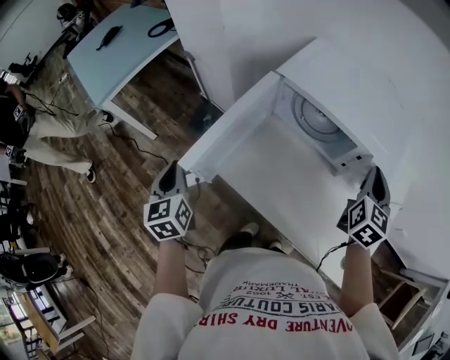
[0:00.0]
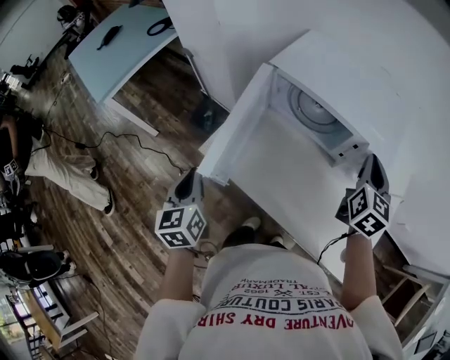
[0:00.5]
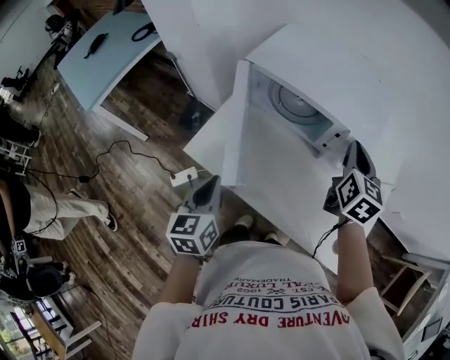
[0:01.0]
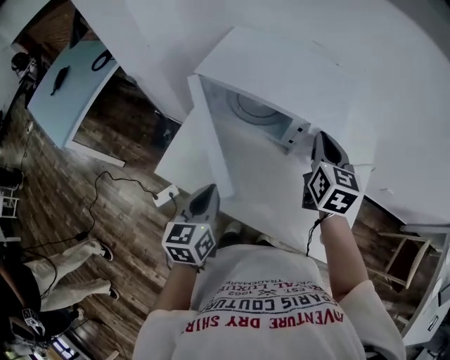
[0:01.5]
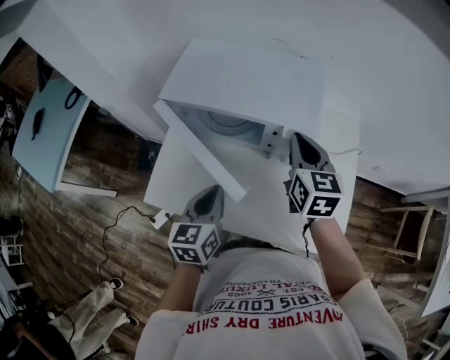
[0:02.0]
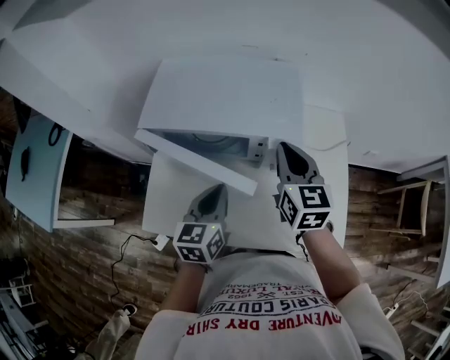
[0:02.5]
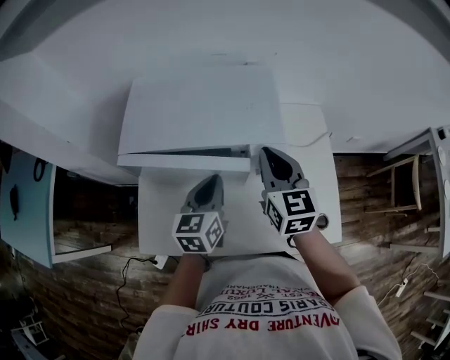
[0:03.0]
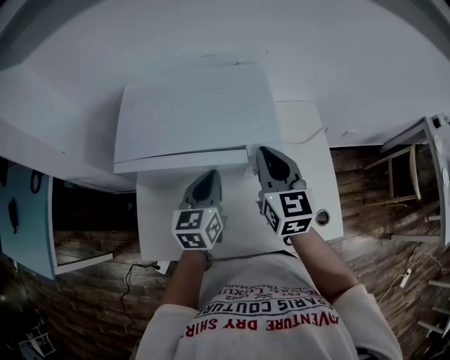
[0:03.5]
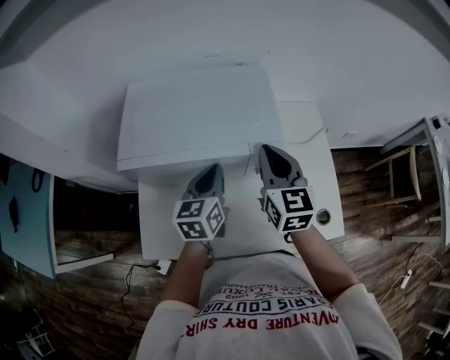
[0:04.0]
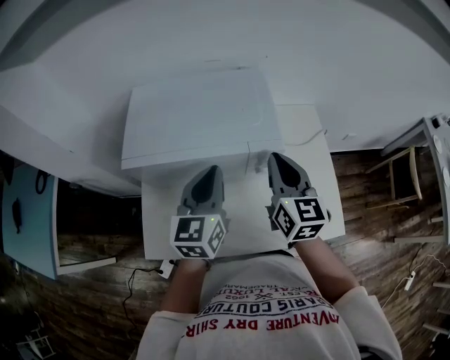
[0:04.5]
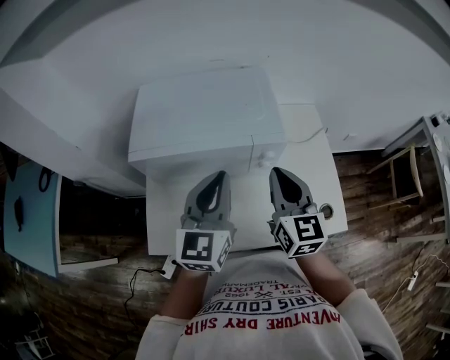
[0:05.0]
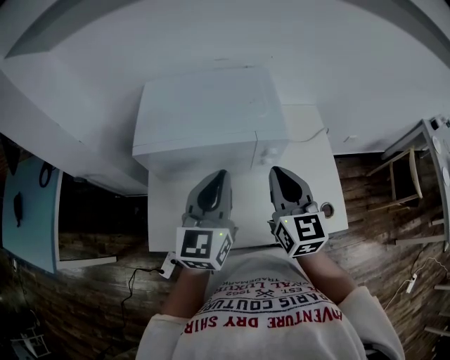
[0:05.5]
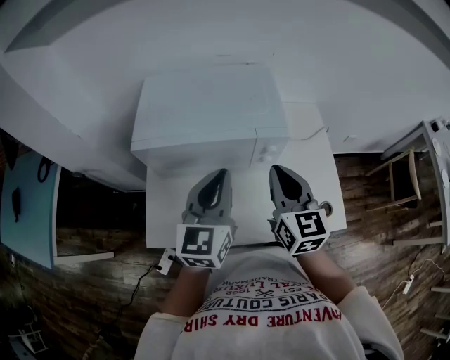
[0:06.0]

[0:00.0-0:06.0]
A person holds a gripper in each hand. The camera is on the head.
0:00.0 to 0:02.0: The left gripper goes about 30 cm to the right, and changes its angle by approximately 40 degrees.
0:02.0 to 0:04.0: The left gripper is displaced forward by approximately 15 cm.
0:04.0 to 0:06.0: The left gripper heads upward and backward, covering roughly 15 cm, and swivels some 20 degrees. The right gripper travels backward by roughly 10 cm.

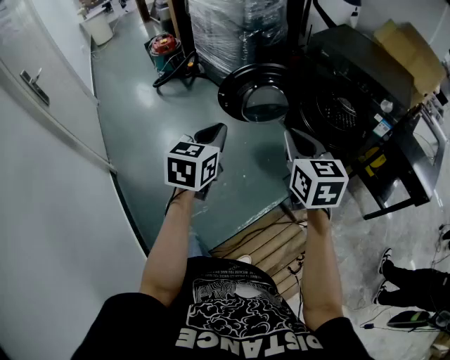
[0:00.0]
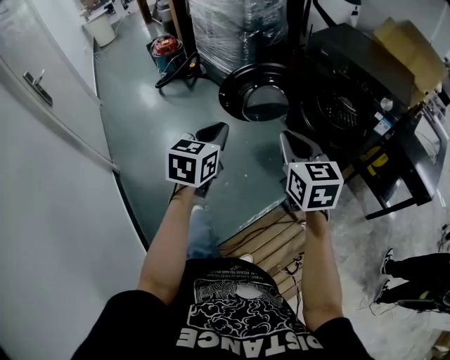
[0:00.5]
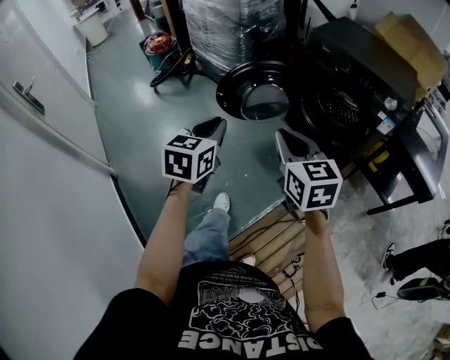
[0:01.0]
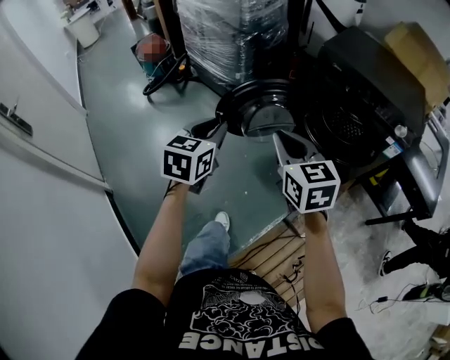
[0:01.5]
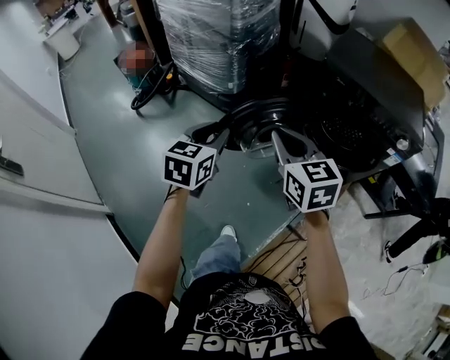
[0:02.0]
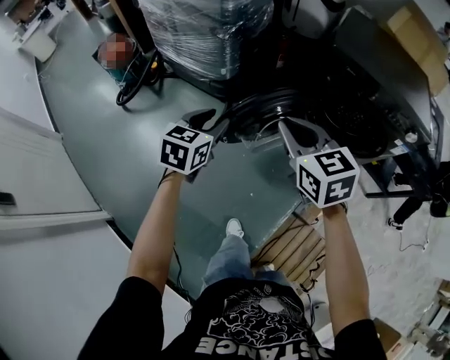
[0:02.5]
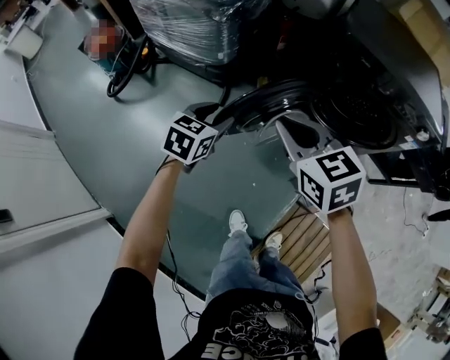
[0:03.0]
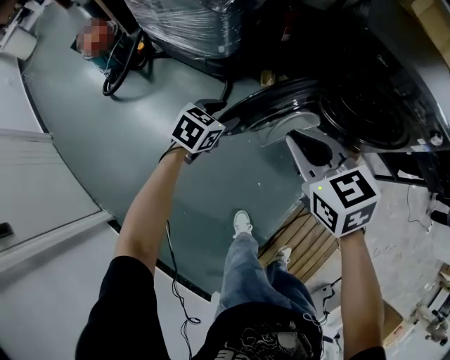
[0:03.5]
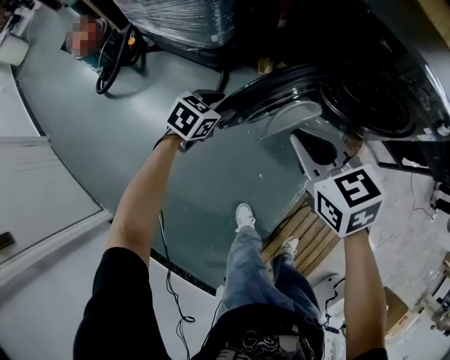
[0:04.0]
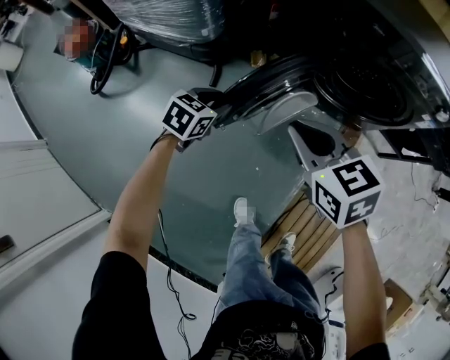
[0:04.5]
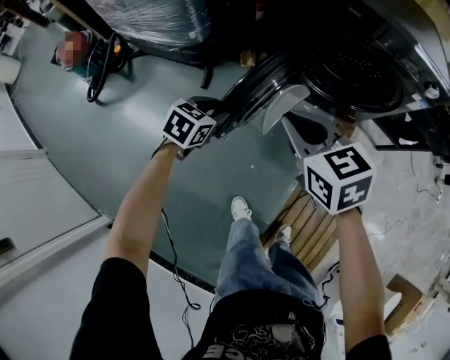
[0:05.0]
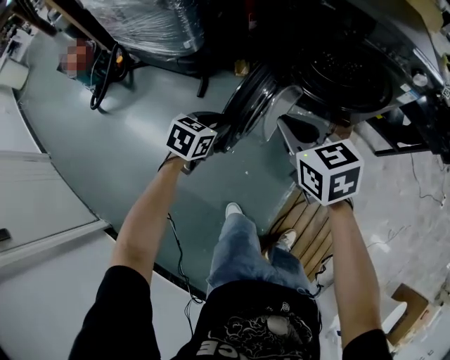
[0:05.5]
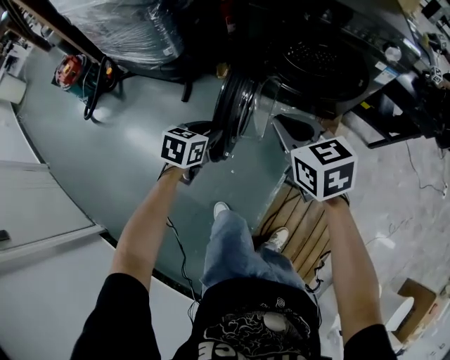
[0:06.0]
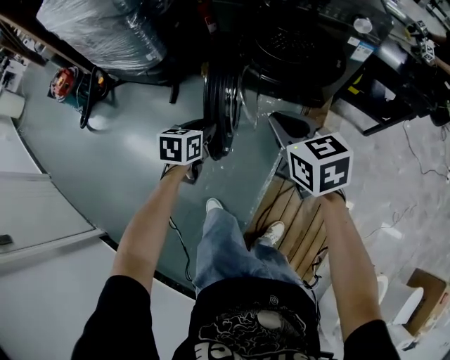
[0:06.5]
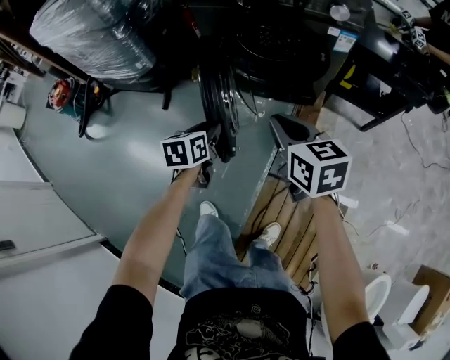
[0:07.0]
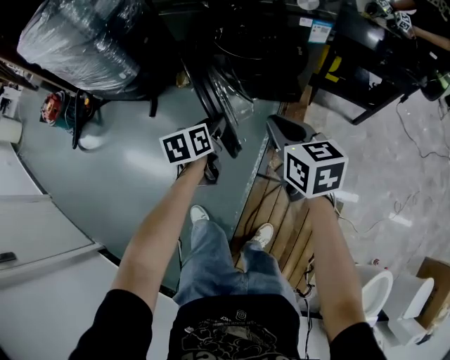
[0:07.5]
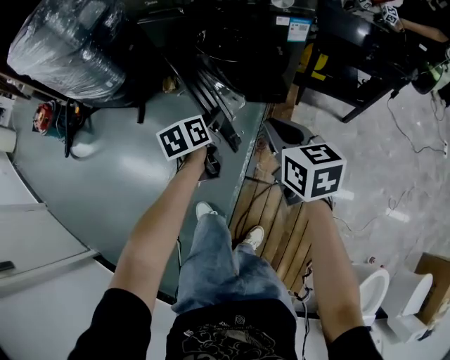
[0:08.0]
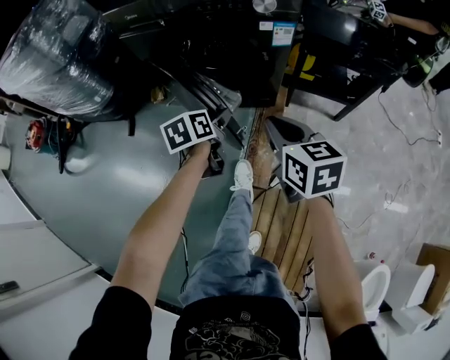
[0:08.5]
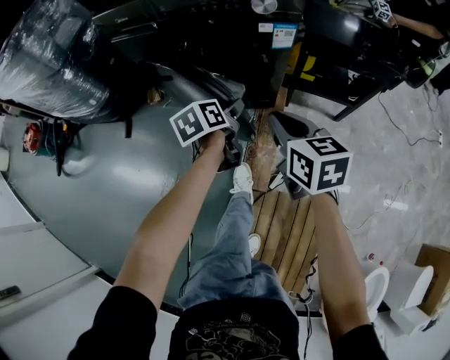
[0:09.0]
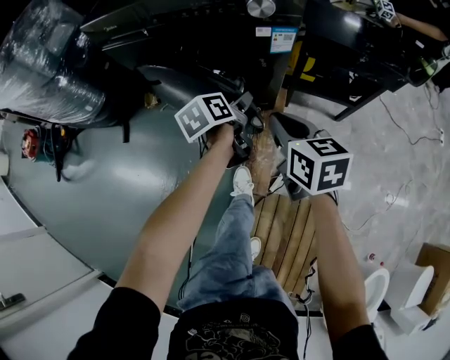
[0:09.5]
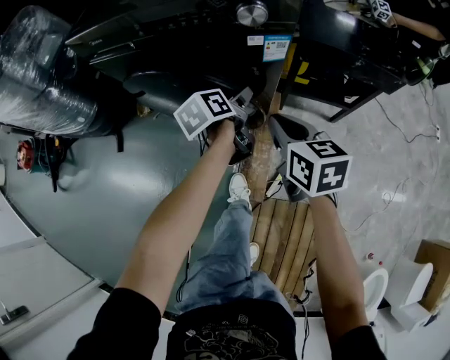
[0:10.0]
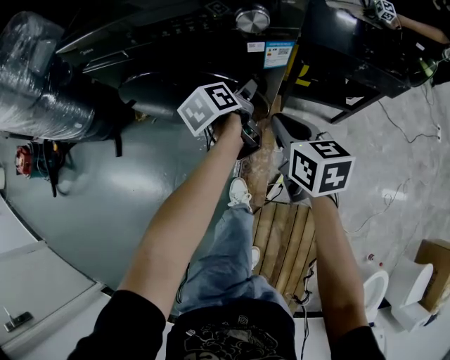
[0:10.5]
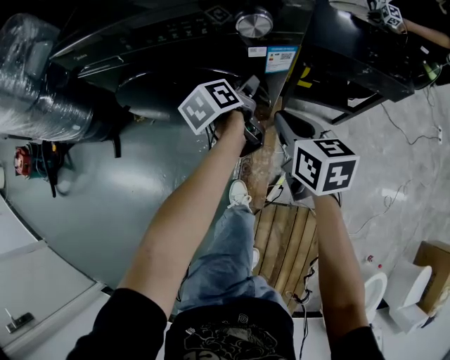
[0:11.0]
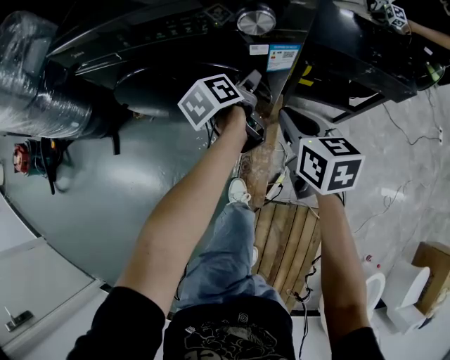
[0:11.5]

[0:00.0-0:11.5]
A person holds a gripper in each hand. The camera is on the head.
0:00.0 to 0:02.0: Both grippers move forward, roughly 30 cm.
0:02.0 to 0:04.0: The left gripper travels downward and forward by approximately 30 cm, and changes its angle by about 40 degrees; the right gripper heads downward and forward, covering some 15 cm.
0:04.0 to 0:06.0: The left gripper moves to the right and backward, some 25 cm. The right gripper goes roughly 20 cm to the right.
0:06.0 to 0:07.5: The grippers both shift to the right by about 25 cm. The left gripper turns by about 20 degrees.
0:07.5 to 0:09.5: The two grippers go roughly 20 cm to the right and forward. The left gripper turns by roughly 20 degrees, and opens its fingers.
0:09.5 to 0:11.5: Both grippers travel together forward, some 10 cm.

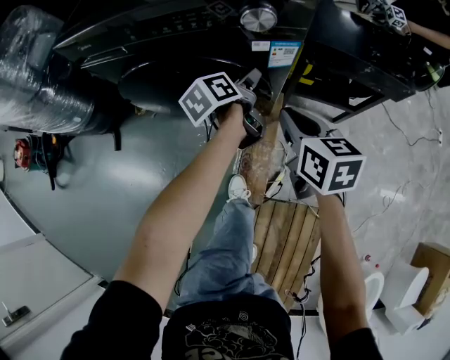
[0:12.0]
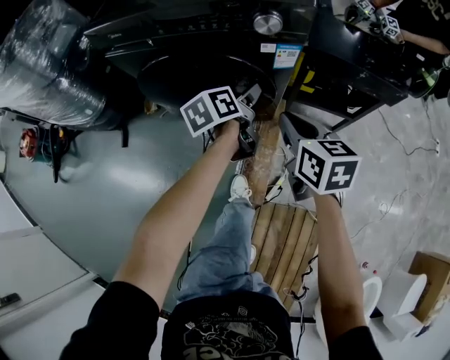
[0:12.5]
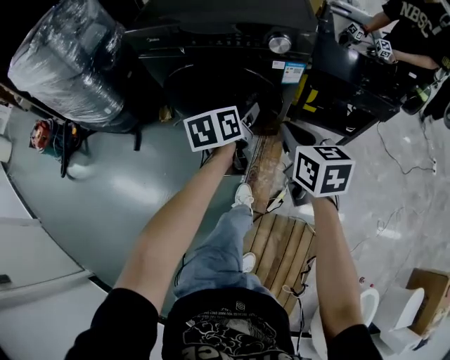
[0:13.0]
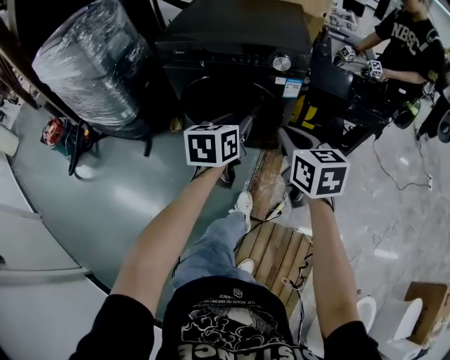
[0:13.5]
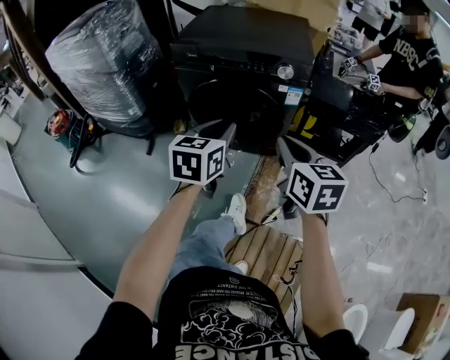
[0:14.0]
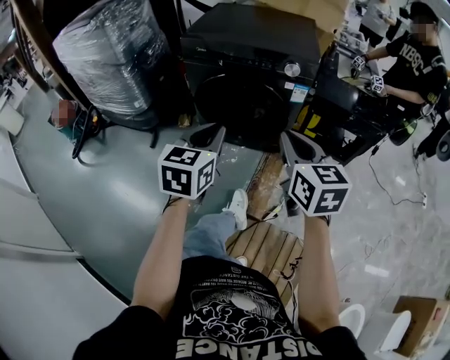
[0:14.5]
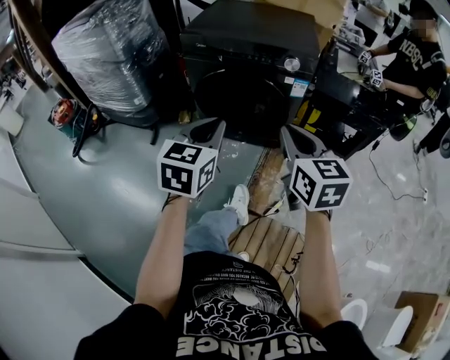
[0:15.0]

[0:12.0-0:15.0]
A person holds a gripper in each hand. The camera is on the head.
0:12.0 to 0:13.5: The left gripper heads backward and upward, covering roughly 30 cm, twists about 40 degrees clockwise, seen from behind, and closes its fingers; the right gripper is displaced upward and backward by some 25 cm.
0:13.5 to 0:15.0: The right gripper moves backward and upward, approximately 10 cm; the left gripper heads backward, to the left and upward, covering some 15 cm, and changes its angle by approximately 20 degrees.

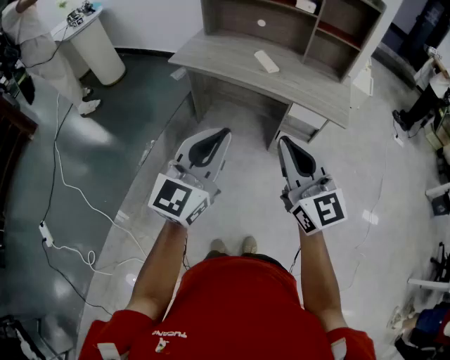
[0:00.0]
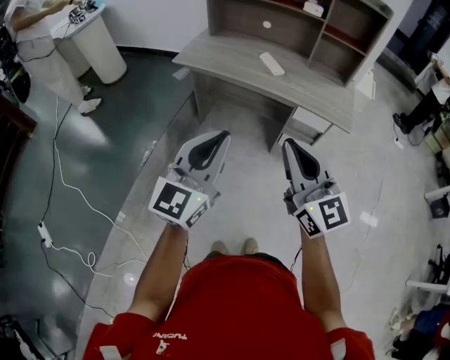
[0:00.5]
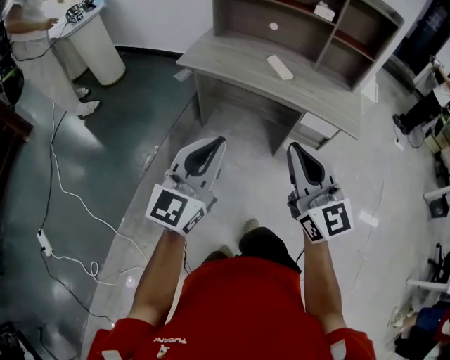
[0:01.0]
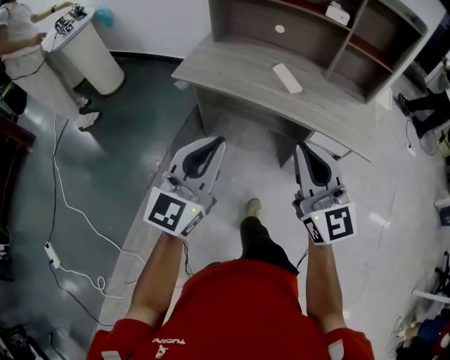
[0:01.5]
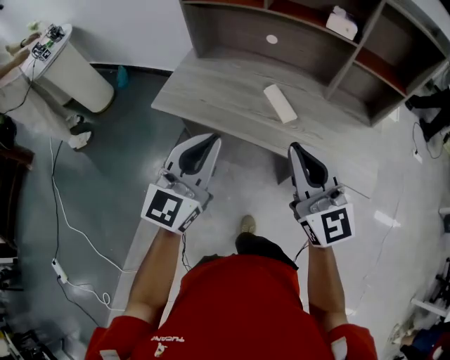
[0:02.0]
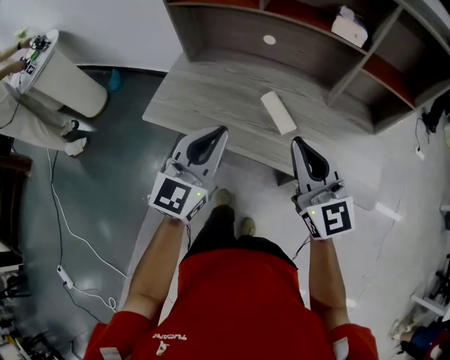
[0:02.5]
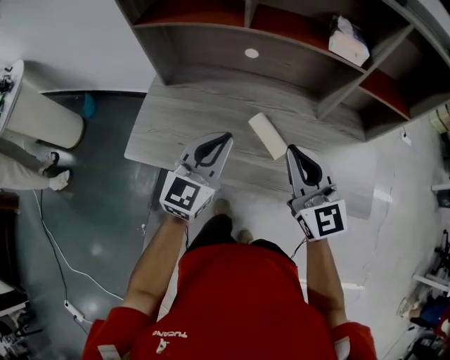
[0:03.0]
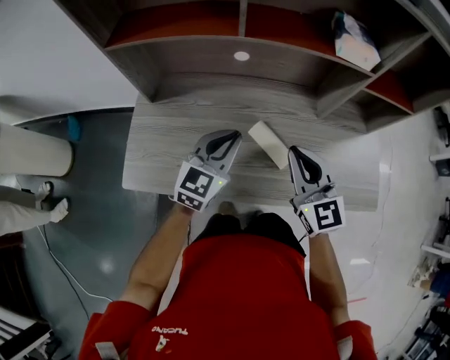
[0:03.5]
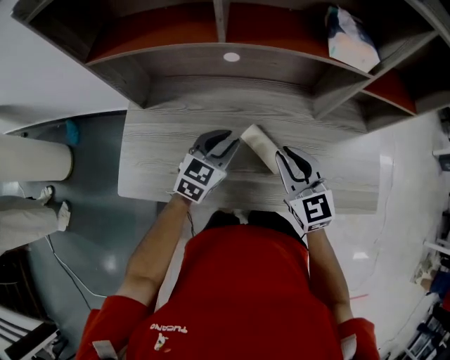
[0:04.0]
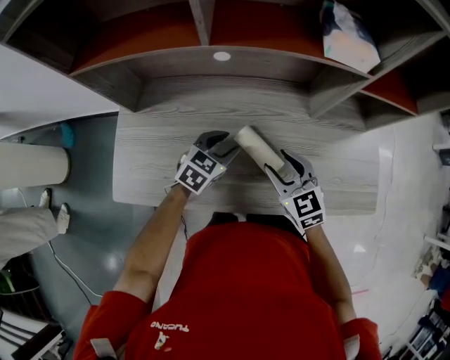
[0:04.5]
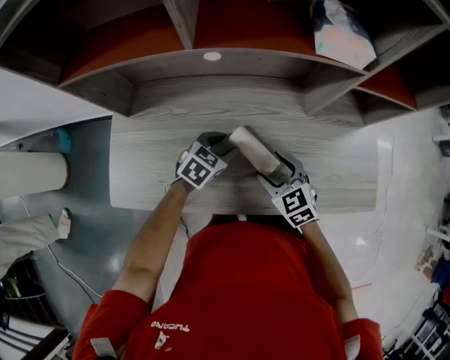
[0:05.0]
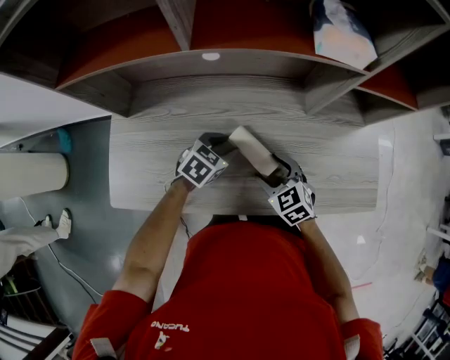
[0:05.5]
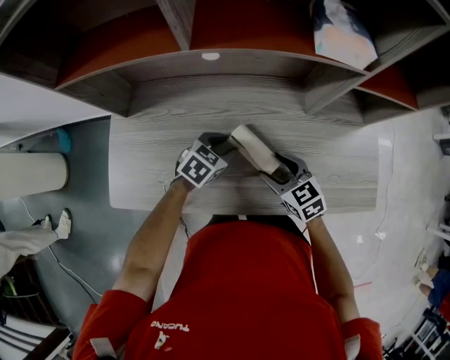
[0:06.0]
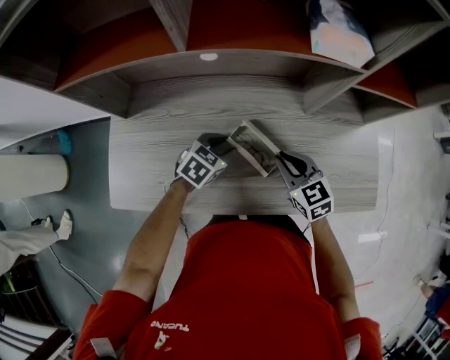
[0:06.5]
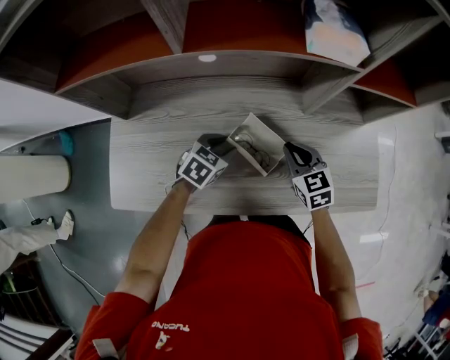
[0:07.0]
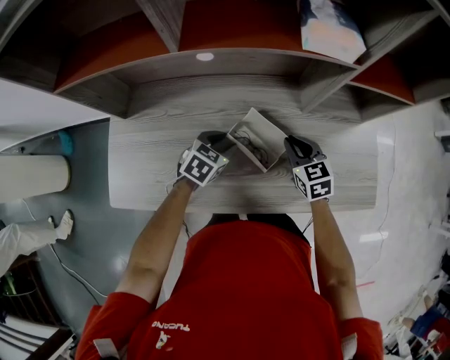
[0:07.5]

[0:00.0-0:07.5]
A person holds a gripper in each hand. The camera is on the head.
0:00.0 to 0:02.0: The grippers both shift forward by roughly 35 cm.
0:02.0 to 0:04.0: The two grippers go roughly 35 cm forward and downward. The left gripper tilts its fingers some 30 degrees downward. The right gripper rotates approximately 30 degrees.
0:04.0 to 0:05.5: The left gripper goes approximately 10 cm downward, and turns by some 30 degrees. Meanwhile the right gripper goes roughly 15 cm downward, changes its angle by roughly 30 degrees, and opens up.
0:05.5 to 0:07.5: The right gripper shifts roughly 10 cm forward and to the right, and closes.
